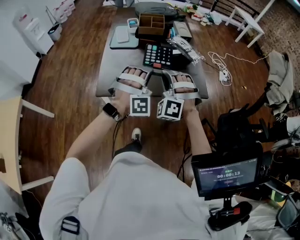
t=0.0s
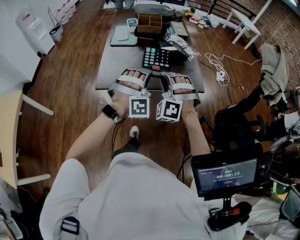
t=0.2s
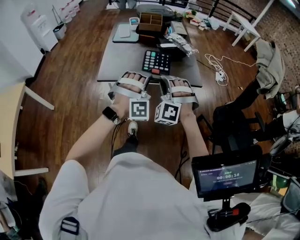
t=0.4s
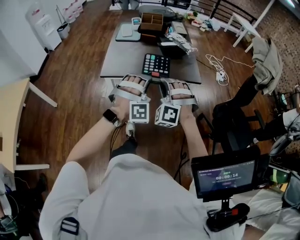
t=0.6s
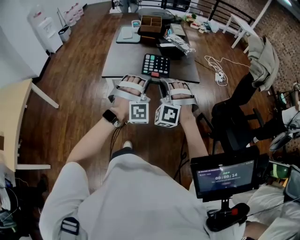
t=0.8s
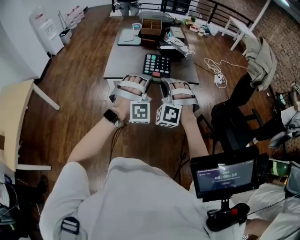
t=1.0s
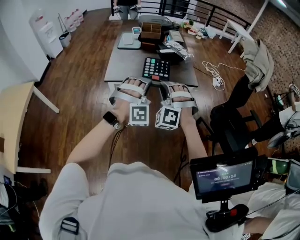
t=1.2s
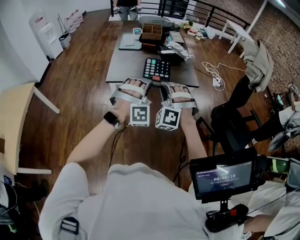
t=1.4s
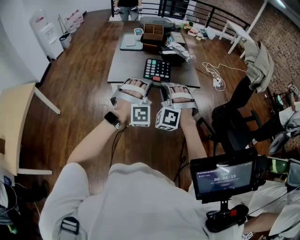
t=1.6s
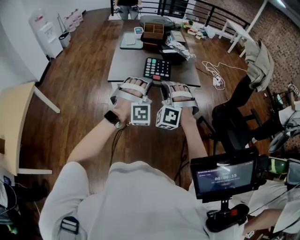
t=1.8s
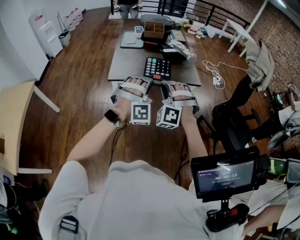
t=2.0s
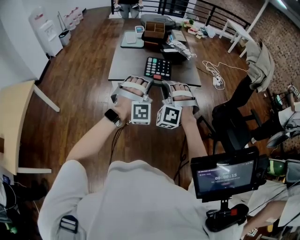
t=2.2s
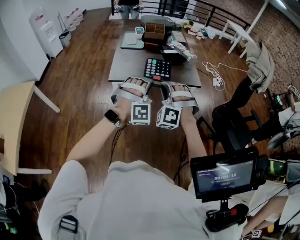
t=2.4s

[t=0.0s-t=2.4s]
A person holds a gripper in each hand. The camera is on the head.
t=0.0s to t=1.2s: The grippers both shift backward by approximately 25 cm.
t=1.2s to t=2.4s: There are only small adjustments of the grippers.

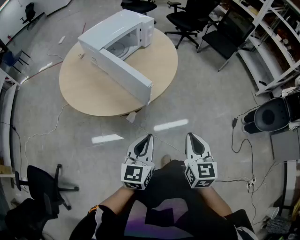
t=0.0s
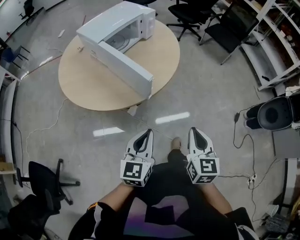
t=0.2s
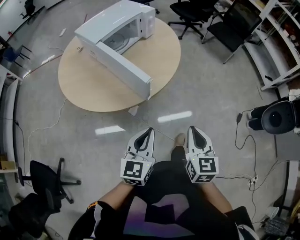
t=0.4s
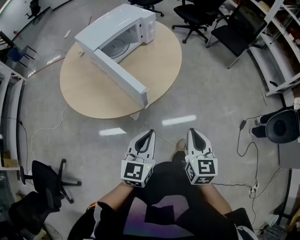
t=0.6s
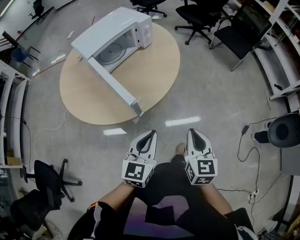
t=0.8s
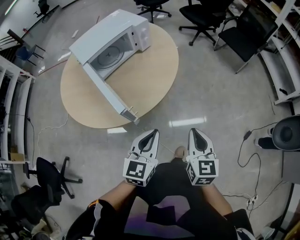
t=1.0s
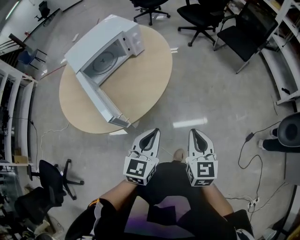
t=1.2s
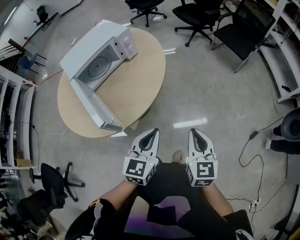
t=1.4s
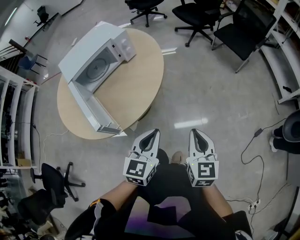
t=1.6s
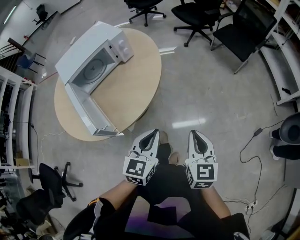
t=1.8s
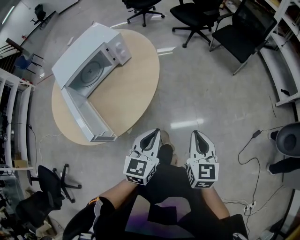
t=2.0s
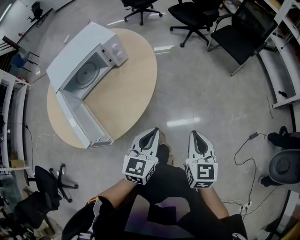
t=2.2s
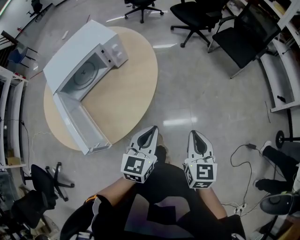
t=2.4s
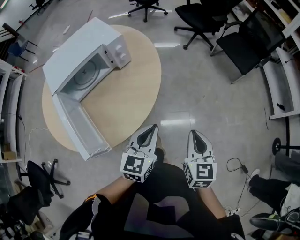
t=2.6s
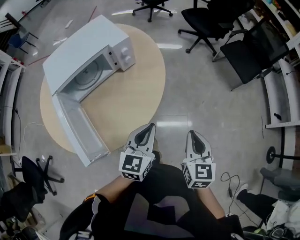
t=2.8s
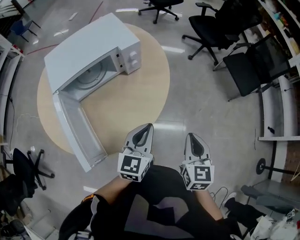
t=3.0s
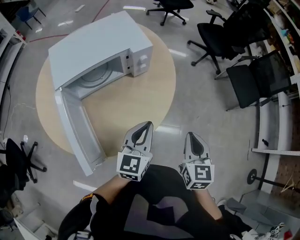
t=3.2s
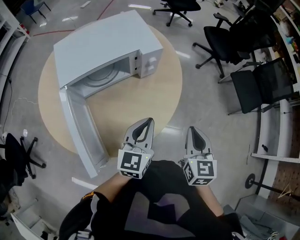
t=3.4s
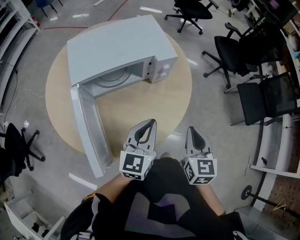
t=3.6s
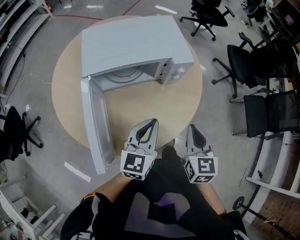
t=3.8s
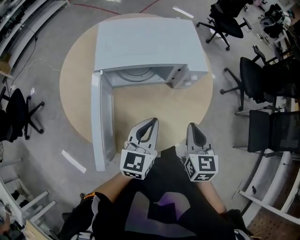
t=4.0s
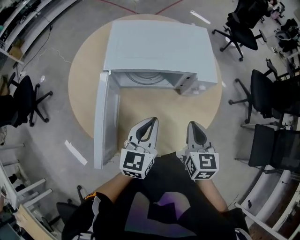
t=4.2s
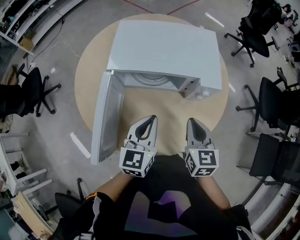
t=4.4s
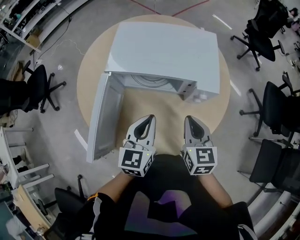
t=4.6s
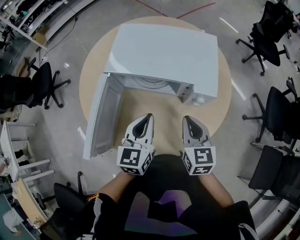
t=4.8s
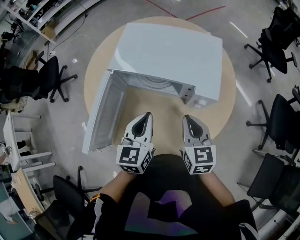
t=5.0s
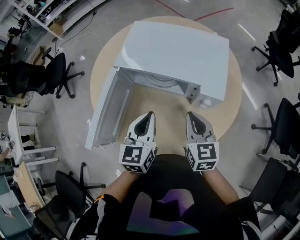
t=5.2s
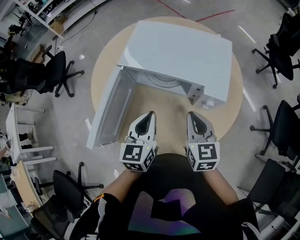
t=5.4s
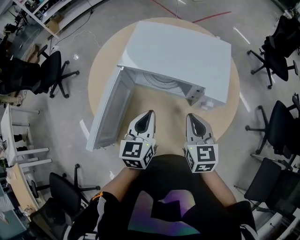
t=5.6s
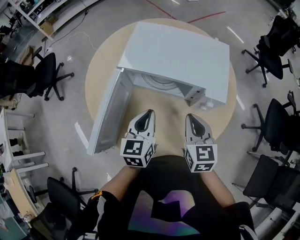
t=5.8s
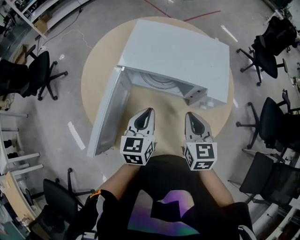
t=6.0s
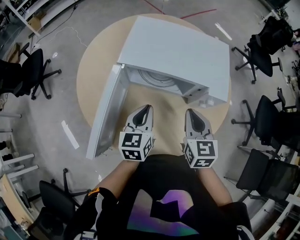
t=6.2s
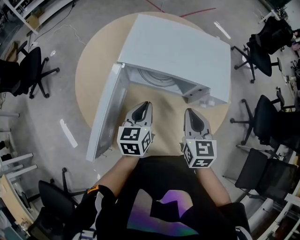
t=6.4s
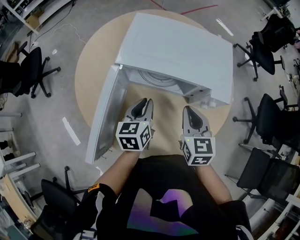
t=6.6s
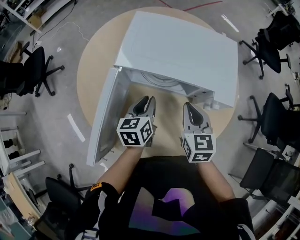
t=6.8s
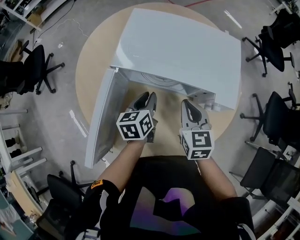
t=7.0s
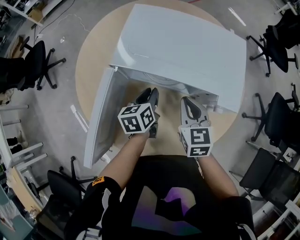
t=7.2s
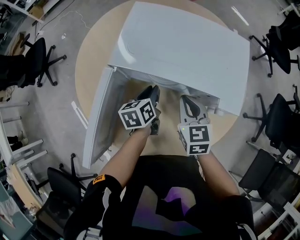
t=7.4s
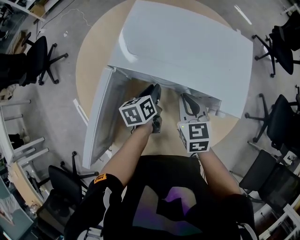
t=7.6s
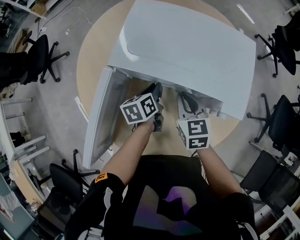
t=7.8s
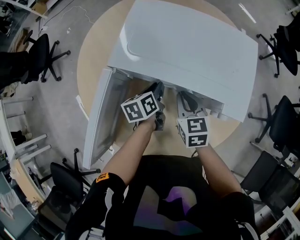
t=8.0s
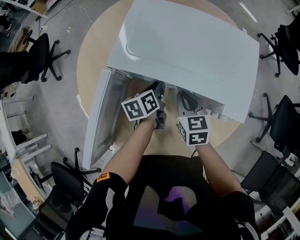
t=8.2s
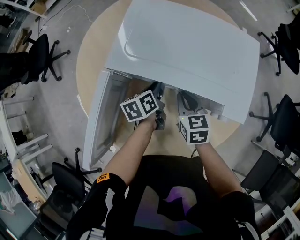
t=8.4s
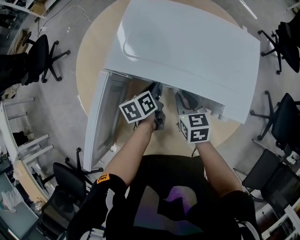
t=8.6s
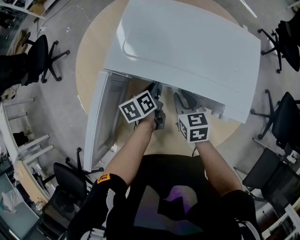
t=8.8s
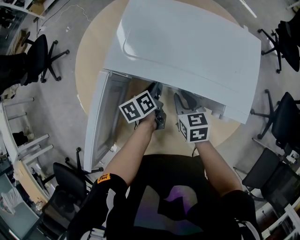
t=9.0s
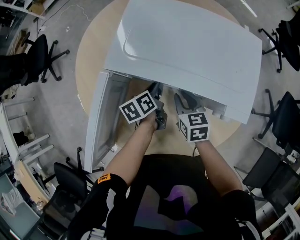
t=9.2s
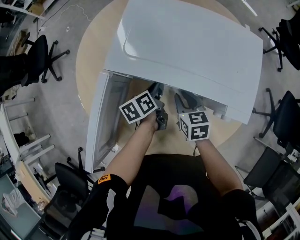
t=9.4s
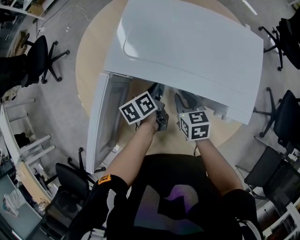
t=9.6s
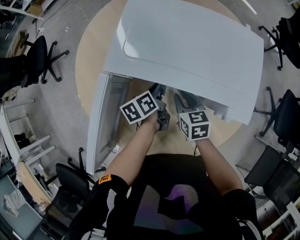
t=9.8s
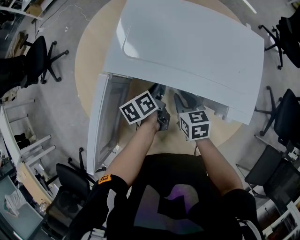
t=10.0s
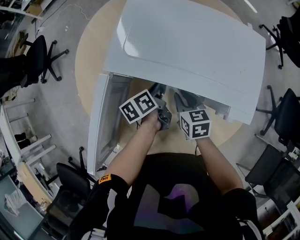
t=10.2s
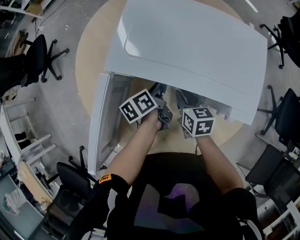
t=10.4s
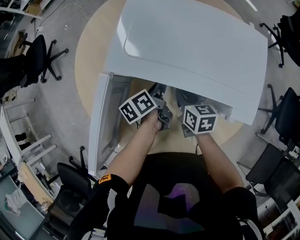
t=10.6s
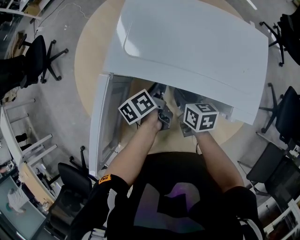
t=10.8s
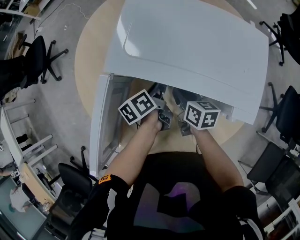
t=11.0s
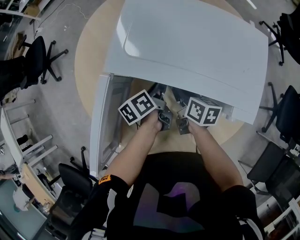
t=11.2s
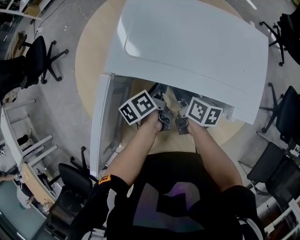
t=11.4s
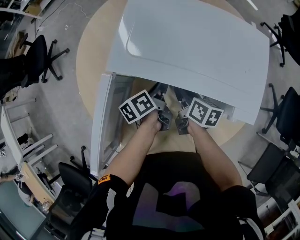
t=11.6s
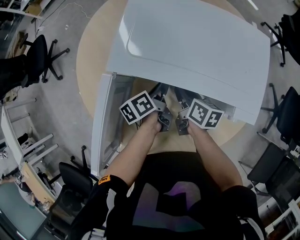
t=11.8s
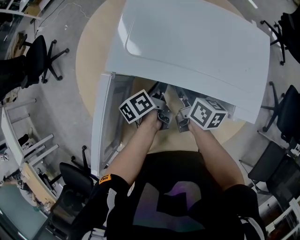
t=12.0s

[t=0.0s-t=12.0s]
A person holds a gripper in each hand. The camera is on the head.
t=0.0s to t=1.6s: The two grippers go about 35 cm forward and to the right.
t=1.6s to t=3.0s: The grippers both shift forward by roughly 25 cm.
t=3.0s to t=4.4s: The right gripper moves about 30 cm, and turns by approximately 40 degrees, while the left gripper changes place by approximately 20 cm, and changes its angle by roughly 40 degrees.
t=4.4s to t=6.0s: The right gripper changes place by about 5 cm. The left gripper moves about 5 cm.
t=6.0s to t=7.6s: The left gripper moves downward and forward, roughly 20 cm, and rotates some 30 degrees. The right gripper shifts some 15 cm forward and downward.
t=7.6s to t=9.0s: The right gripper travels downward by about 5 cm.
t=9.0s to t=10.4s: The grippers make only small movements.
t=10.4s to t=12.0s: The right gripper shifts by about 5 cm, and changes its angle by some 30 degrees.

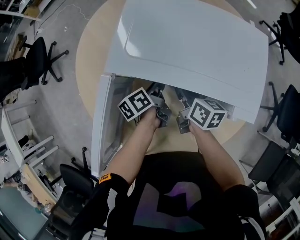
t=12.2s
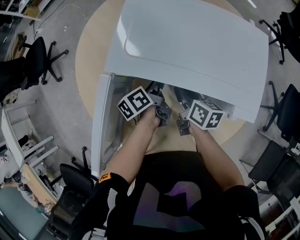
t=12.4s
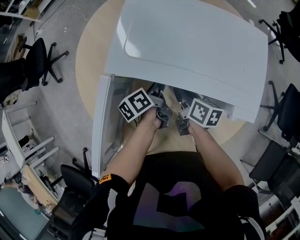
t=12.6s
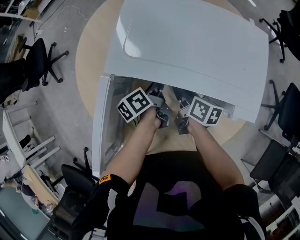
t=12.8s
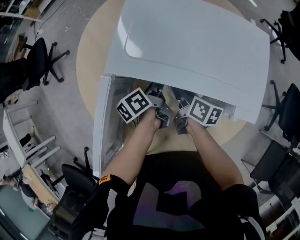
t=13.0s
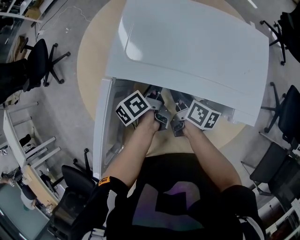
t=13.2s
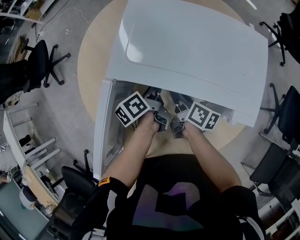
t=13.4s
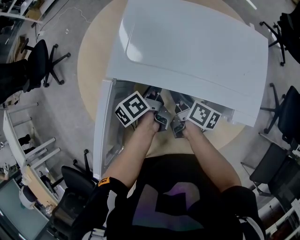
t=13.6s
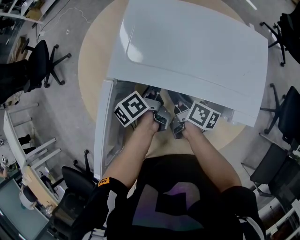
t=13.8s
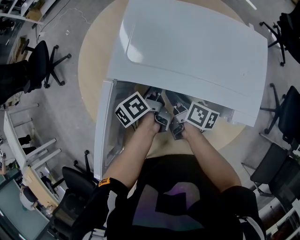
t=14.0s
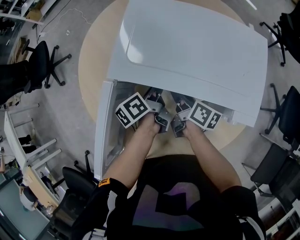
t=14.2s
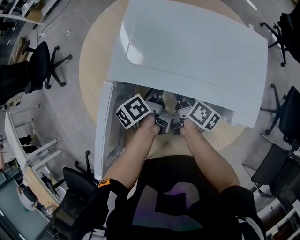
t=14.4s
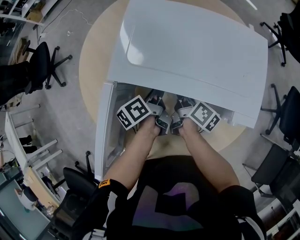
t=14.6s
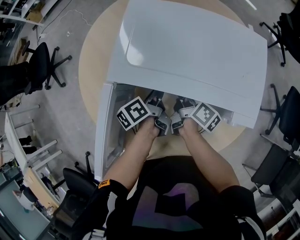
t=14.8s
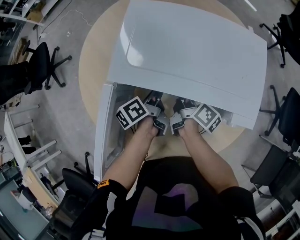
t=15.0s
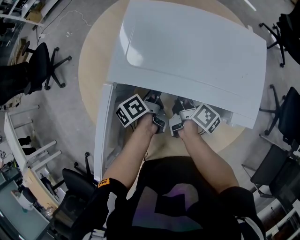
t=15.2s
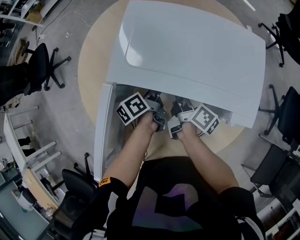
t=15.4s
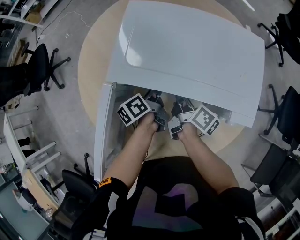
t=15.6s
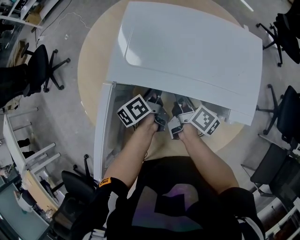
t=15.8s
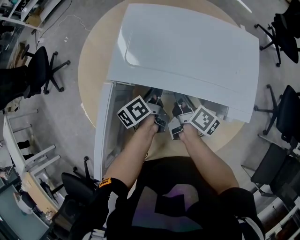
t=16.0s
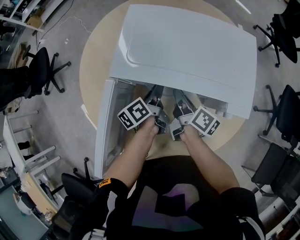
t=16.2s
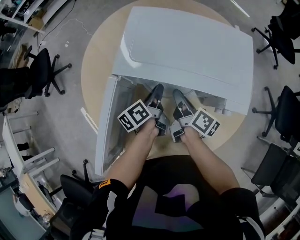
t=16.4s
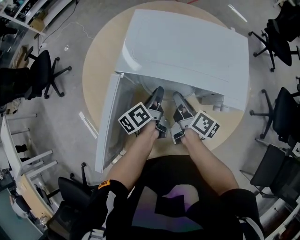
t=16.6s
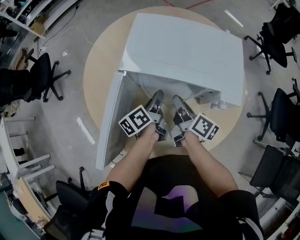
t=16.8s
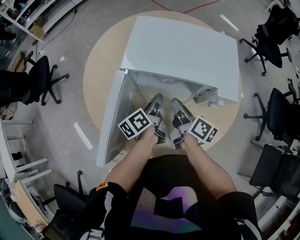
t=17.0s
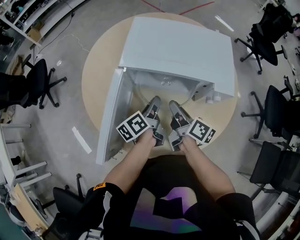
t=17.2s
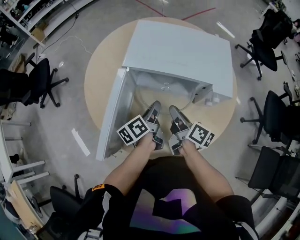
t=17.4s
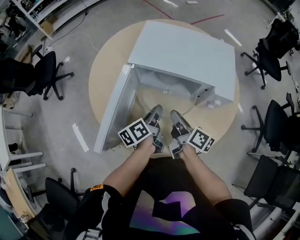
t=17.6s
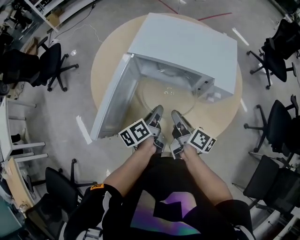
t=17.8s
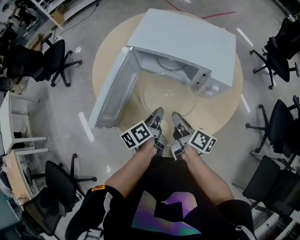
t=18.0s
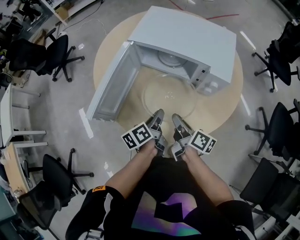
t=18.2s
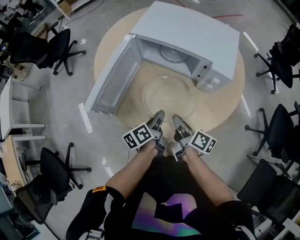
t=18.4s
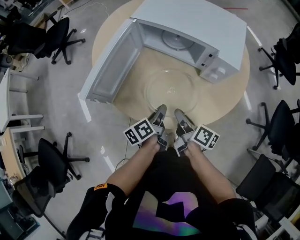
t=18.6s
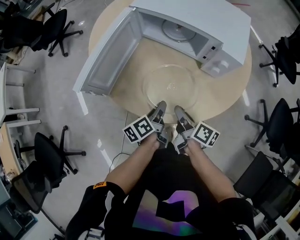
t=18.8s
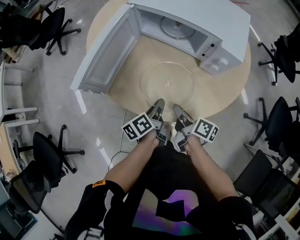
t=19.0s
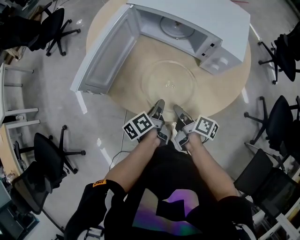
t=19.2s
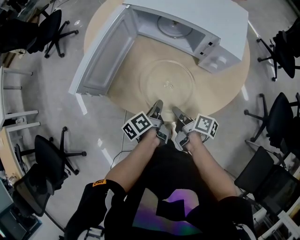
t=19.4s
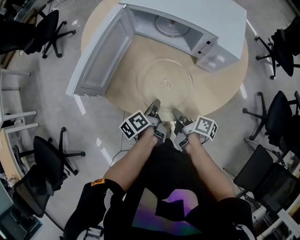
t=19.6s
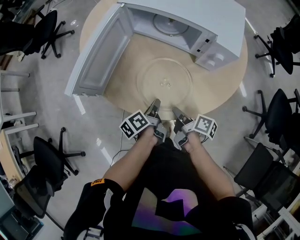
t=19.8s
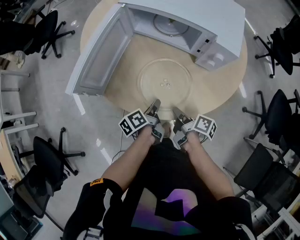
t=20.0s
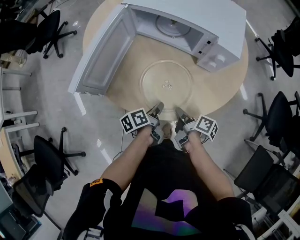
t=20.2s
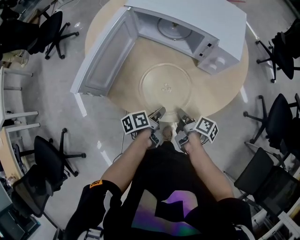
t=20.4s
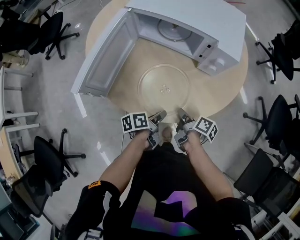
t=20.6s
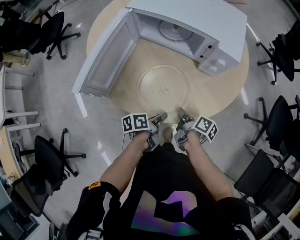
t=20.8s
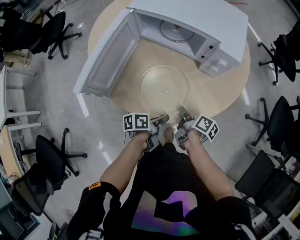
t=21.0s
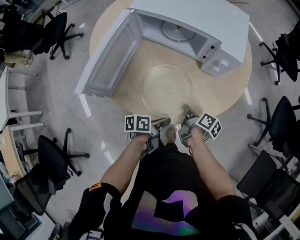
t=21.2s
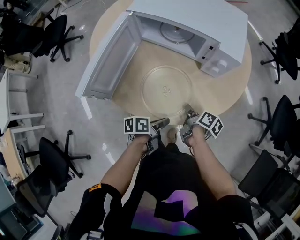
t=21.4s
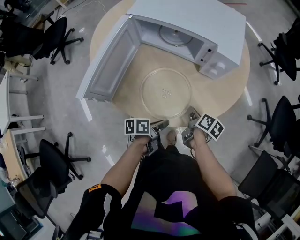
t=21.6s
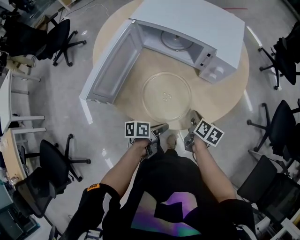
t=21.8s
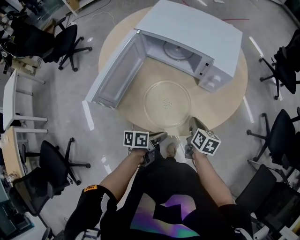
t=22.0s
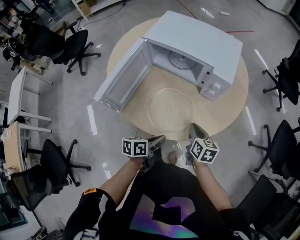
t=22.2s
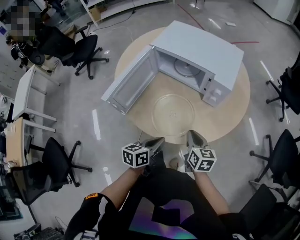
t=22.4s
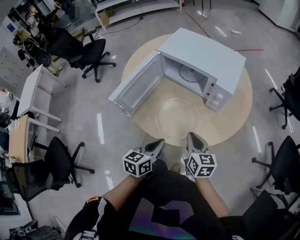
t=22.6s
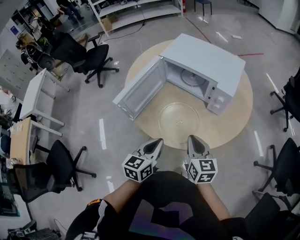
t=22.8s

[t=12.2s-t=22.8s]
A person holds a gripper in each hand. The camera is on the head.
t=12.2s to t=13.8s: The right gripper rotates about 20 degrees.
t=13.8s to t=15.2s: The grippers stay close to where they were, moving slightly.
t=15.2s to t=16.8s: The two grippers go about 10 cm backward and upward.
t=16.8s to t=18.2s: The grippers both shift backward by roughly 20 cm.
t=18.2s to t=19.8s: The grippers both shift downward and backward by about 15 cm. The right gripper changes its angle by roughly 20 degrees.
t=19.8s to t=21.2s: The left gripper shifts by some 5 cm, and changes its angle by about 40 degrees, while the right gripper ends up about 5 cm from where it was.
t=21.2s to t=22.8s: Both grippers travel together upward, roughly 20 cm. The left gripper swivels about 60 degrees, and closes; the right gripper rotates around the line of its fingers by roughly 70 degrees, counterclockwise from behind.
